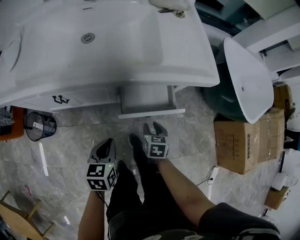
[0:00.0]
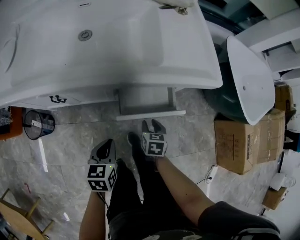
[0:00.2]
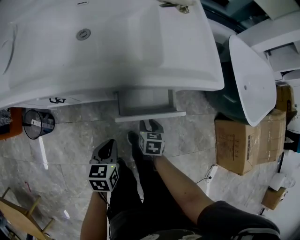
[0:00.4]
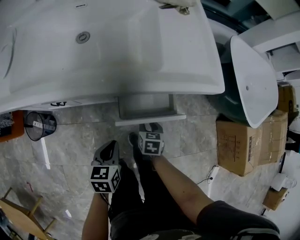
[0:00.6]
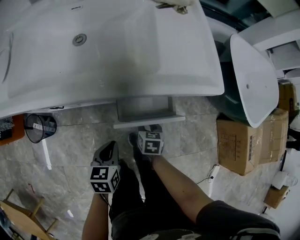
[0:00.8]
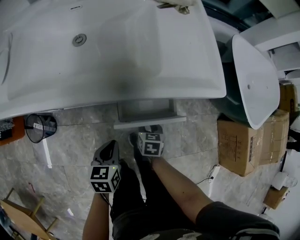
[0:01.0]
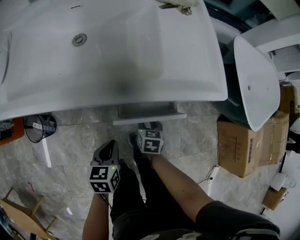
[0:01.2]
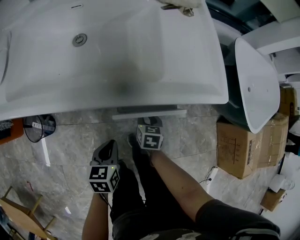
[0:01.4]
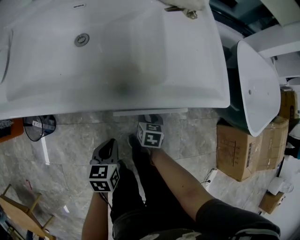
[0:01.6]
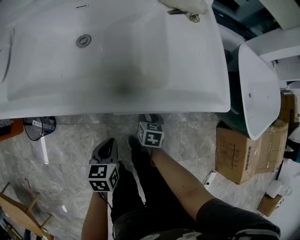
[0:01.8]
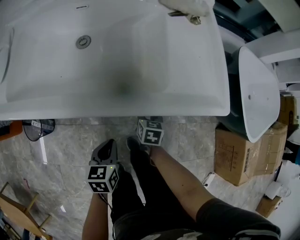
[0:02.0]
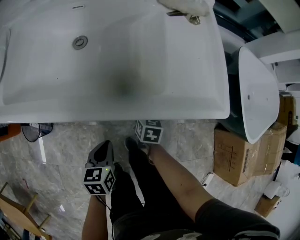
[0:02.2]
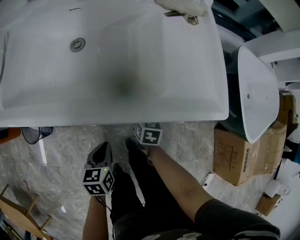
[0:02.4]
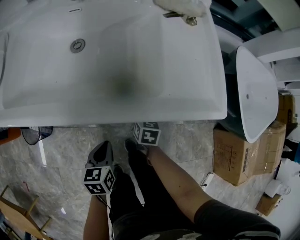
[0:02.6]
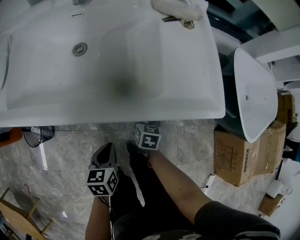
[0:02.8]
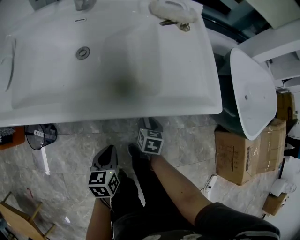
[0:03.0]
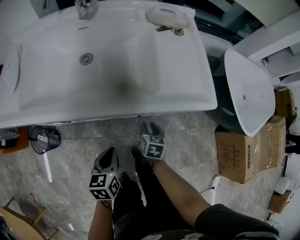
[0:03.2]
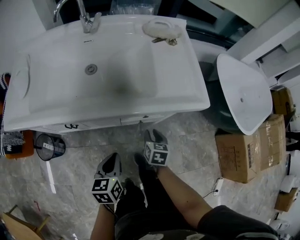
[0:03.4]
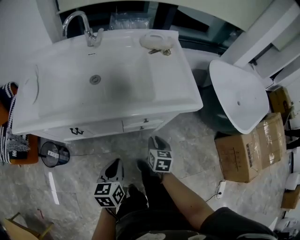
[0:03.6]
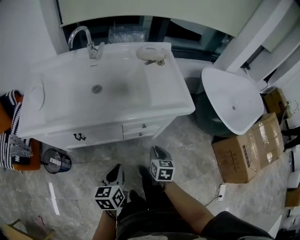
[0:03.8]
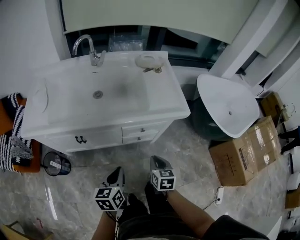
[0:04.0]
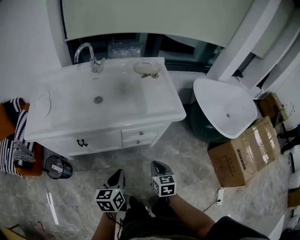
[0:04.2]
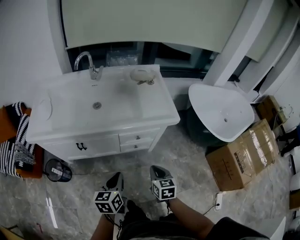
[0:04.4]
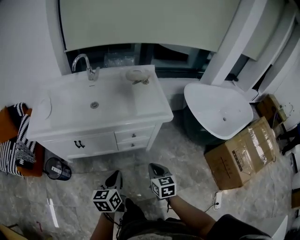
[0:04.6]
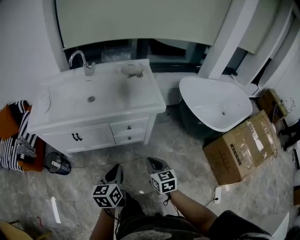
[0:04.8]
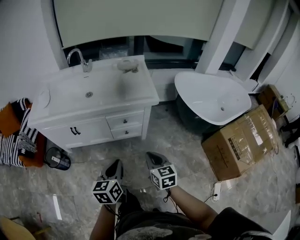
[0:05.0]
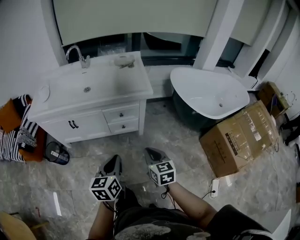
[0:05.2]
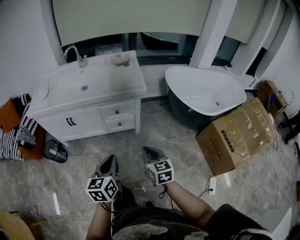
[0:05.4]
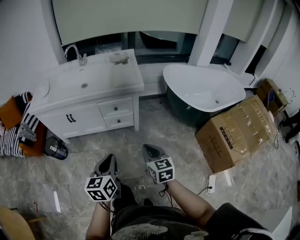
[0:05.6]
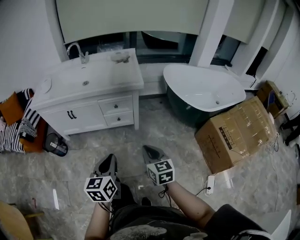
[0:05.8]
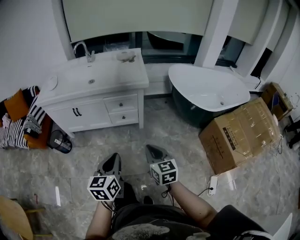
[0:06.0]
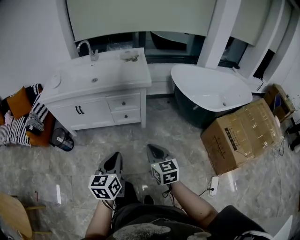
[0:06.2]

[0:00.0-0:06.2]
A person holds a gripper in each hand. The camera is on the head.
0:00.0 to 0:01.6: The left gripper is displaced forward by roughly 5 cm, while the right gripper heads forward, covering roughly 10 cm.
0:01.6 to 0:03.2: The two grippers go some 5 cm upward.
0:03.2 to 0:04.6: The two grippers go about 30 cm upward and backward. The right gripper closes its fingers.
0:04.6 to 0:06.2: Both grippers travel together backward and to the right, some 30 cm.

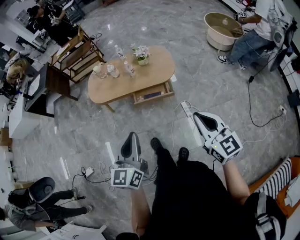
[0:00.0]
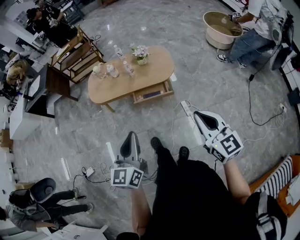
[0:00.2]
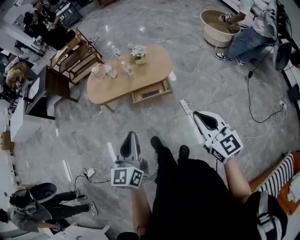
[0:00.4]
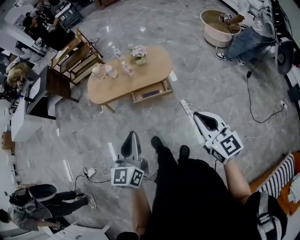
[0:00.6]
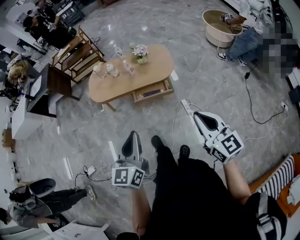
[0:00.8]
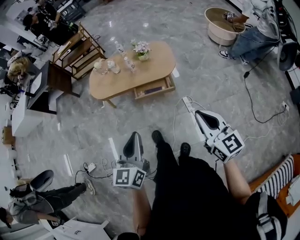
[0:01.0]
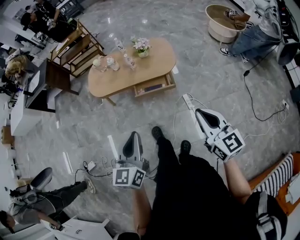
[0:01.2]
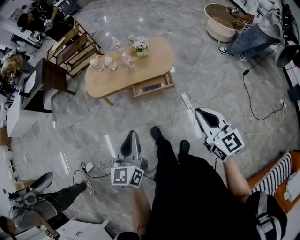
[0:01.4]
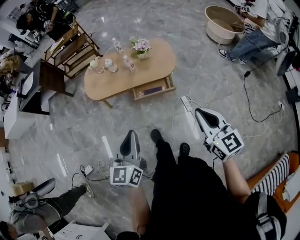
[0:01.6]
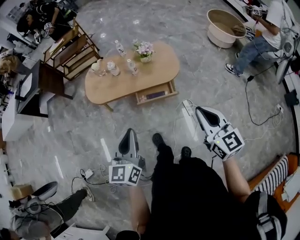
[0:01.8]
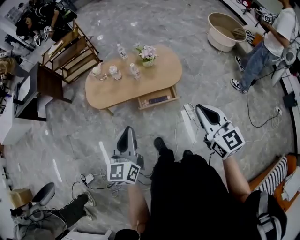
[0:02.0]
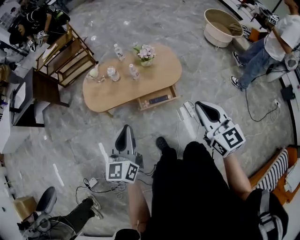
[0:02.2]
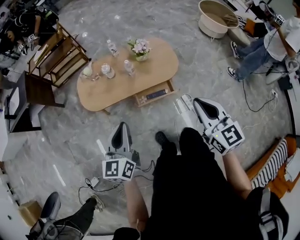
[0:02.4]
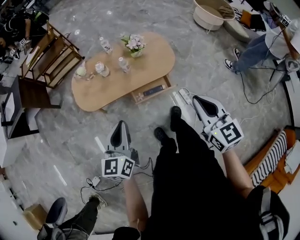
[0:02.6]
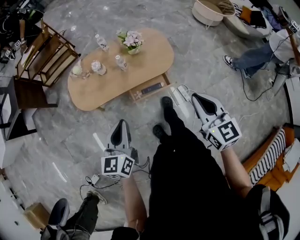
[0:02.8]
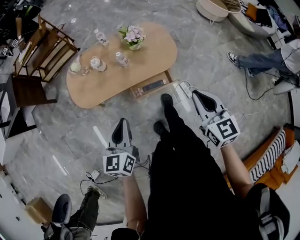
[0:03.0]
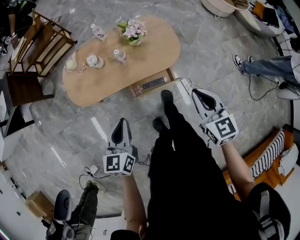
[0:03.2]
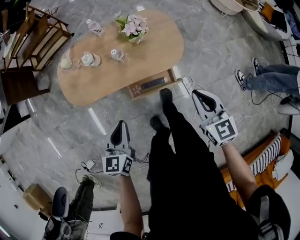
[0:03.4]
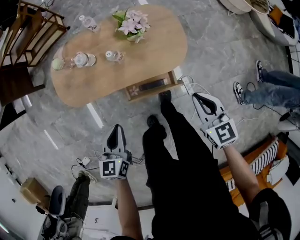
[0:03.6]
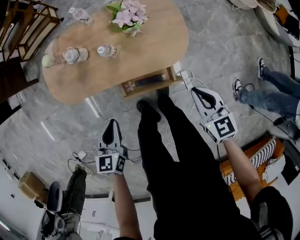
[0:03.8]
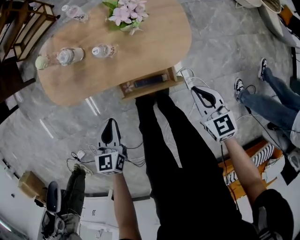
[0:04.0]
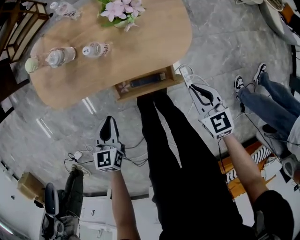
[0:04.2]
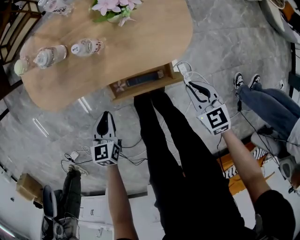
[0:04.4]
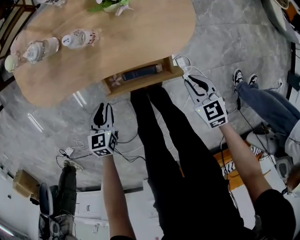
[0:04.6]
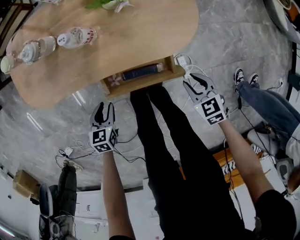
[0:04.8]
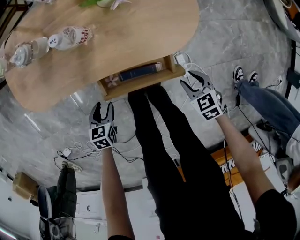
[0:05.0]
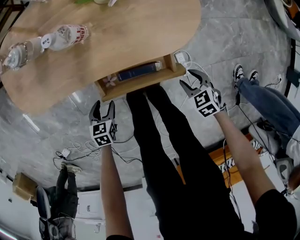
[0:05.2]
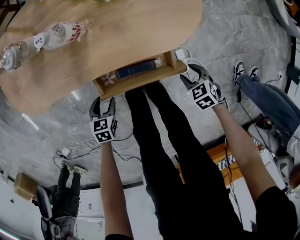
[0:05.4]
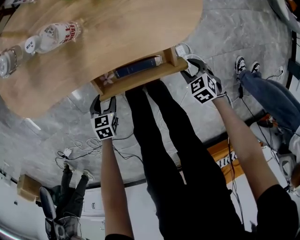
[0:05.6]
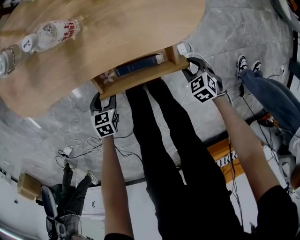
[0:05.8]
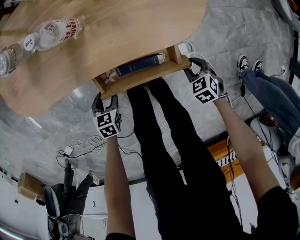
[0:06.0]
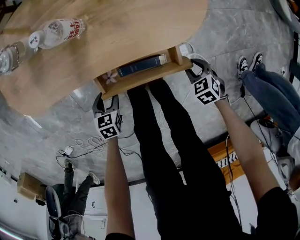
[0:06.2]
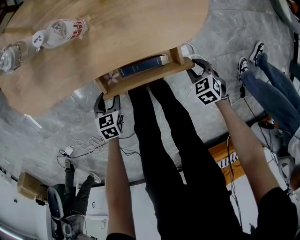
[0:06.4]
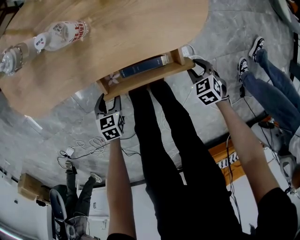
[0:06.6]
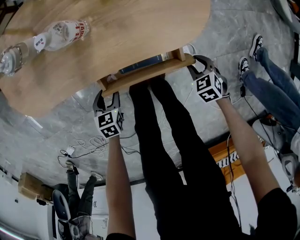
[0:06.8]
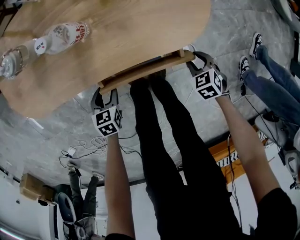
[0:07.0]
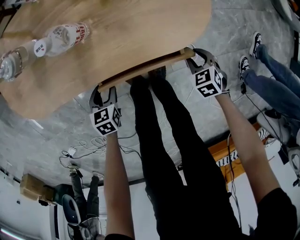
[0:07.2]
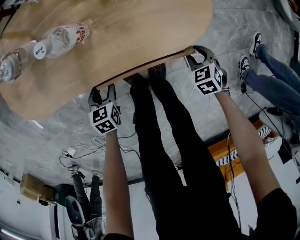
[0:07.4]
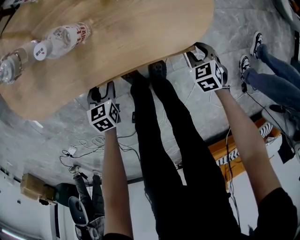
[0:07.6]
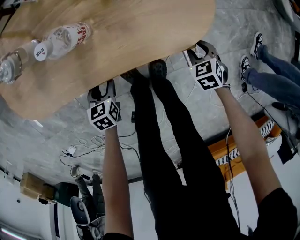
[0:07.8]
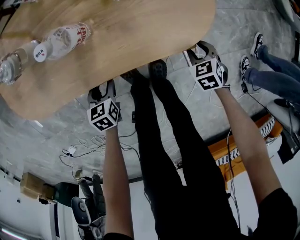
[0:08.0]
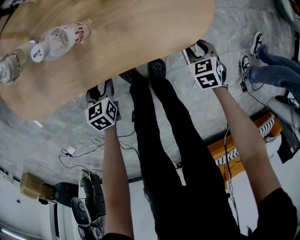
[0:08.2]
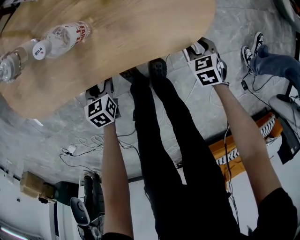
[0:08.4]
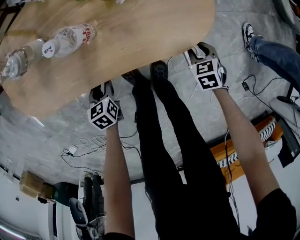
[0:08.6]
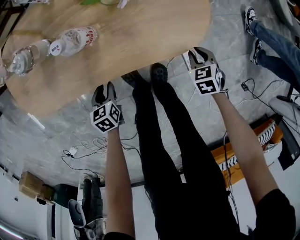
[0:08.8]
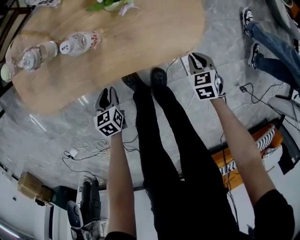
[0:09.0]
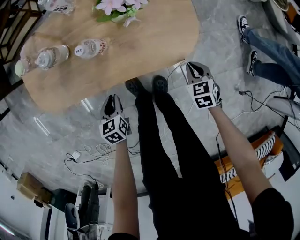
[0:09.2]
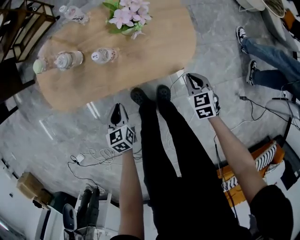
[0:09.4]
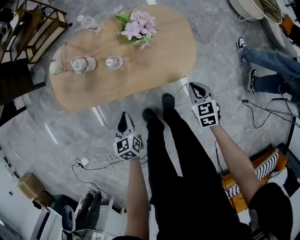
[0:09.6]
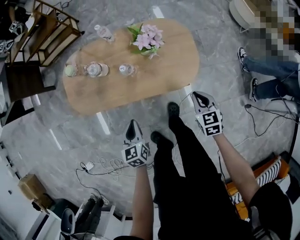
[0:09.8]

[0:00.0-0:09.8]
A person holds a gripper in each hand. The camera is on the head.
0:00.0 to 0:01.4: The grippers stay close to where they were, moving slightly.
0:01.4 to 0:02.8: Both grippers travel together forward and to the left, approximately 25 cm.
0:02.8 to 0:04.2: Both grippers move downward and forward, roughly 40 cm. The right gripper changes its angle by approximately 30 degrees. Meanwhile the left gripper turns by approximately 30 degrees.
0:04.2 to 0:05.6: Both grippers move downward, some 30 cm. The right gripper angles its fingers downward, by some 30 degrees, and opens. The left gripper swivels some 30 degrees, and opens.
0:05.6 to 0:07.0: The left gripper changes place by about 5 cm. Meanwhile the right gripper ends up about 5 cm from where it was.
0:07.0 to 0:08.4: Both grippers move forward, some 5 cm.
0:08.4 to 0:09.8: Both grippers move upward, some 35 cm. The left gripper turns by some 20 degrees, and closes, while the right gripper turns by about 30 degrees, and closes.

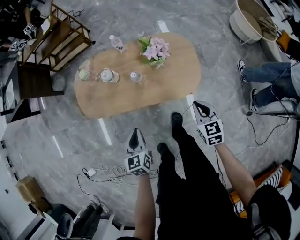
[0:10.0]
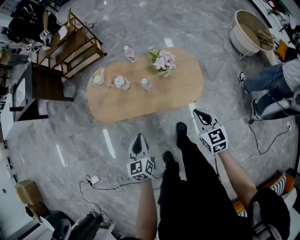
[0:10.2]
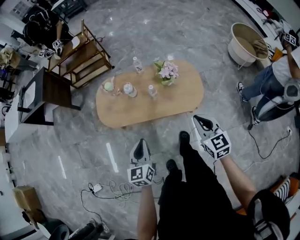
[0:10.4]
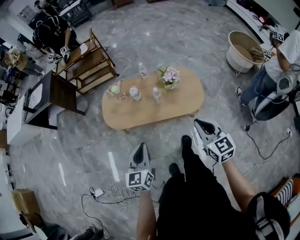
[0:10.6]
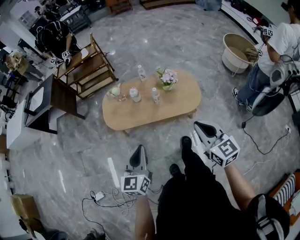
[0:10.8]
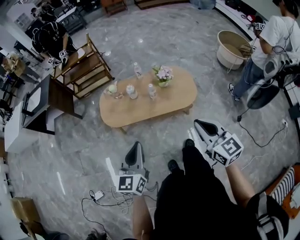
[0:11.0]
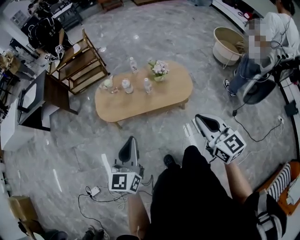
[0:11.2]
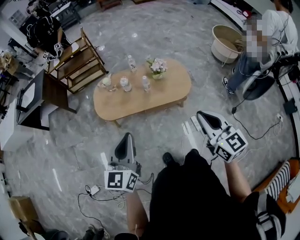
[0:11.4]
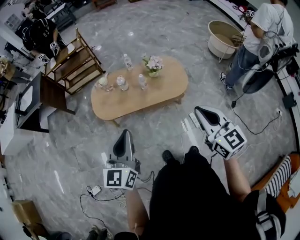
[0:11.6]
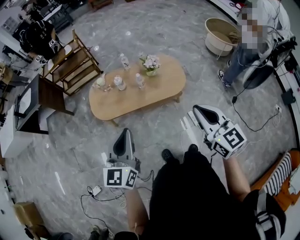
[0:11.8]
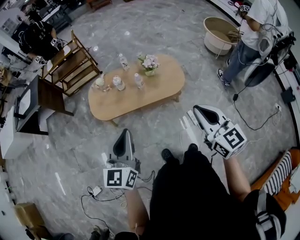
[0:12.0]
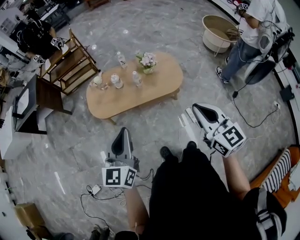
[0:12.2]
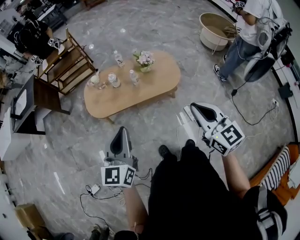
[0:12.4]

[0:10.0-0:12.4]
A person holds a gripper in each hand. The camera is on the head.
0:10.0 to 0:11.2: The left gripper heads upward and backward, covering some 40 cm, and rotates about 30 degrees; the right gripper heads upward, backward and to the left, covering about 50 cm, and changes its angle by approximately 30 degrees.
0:11.2 to 0:12.4: The grippers stay close to where they were, moving slightly.

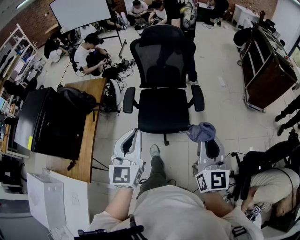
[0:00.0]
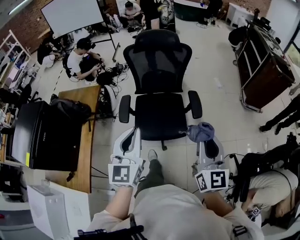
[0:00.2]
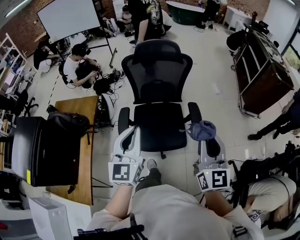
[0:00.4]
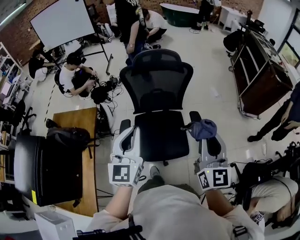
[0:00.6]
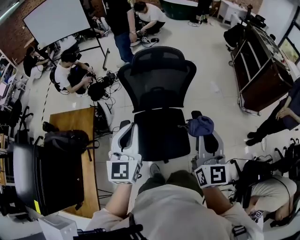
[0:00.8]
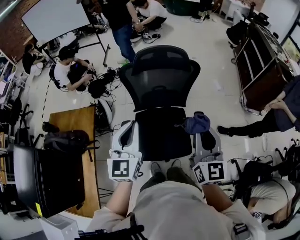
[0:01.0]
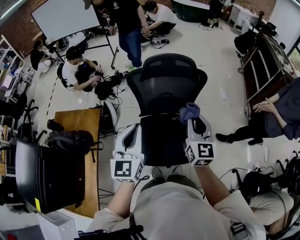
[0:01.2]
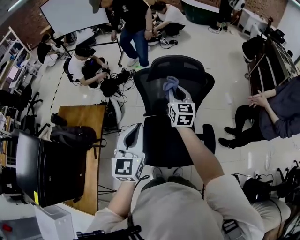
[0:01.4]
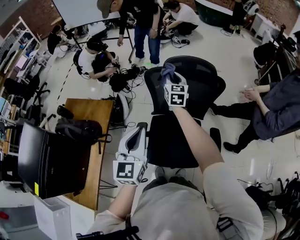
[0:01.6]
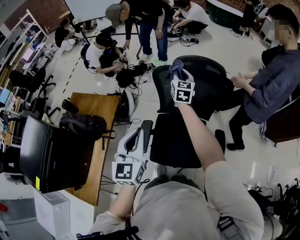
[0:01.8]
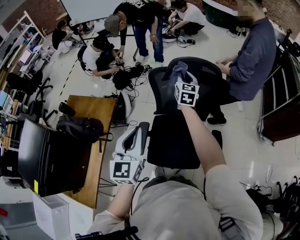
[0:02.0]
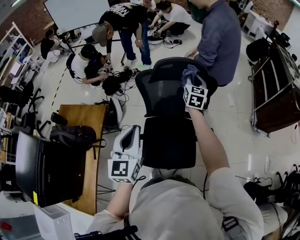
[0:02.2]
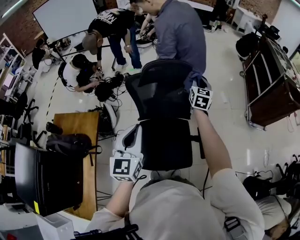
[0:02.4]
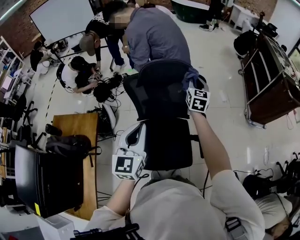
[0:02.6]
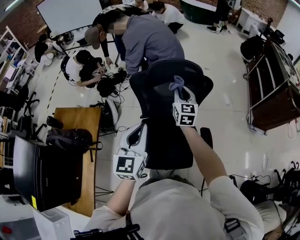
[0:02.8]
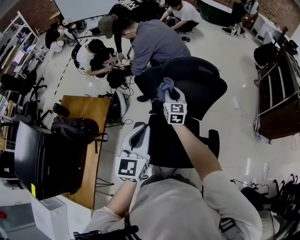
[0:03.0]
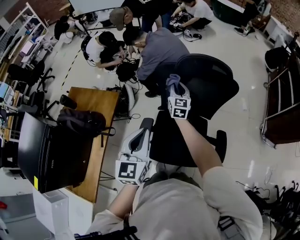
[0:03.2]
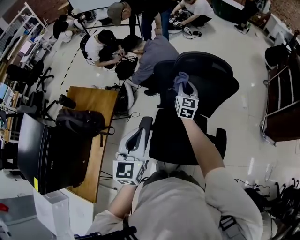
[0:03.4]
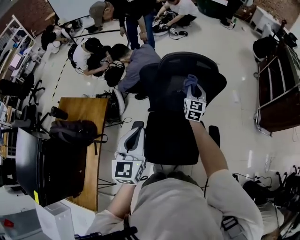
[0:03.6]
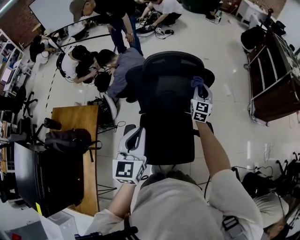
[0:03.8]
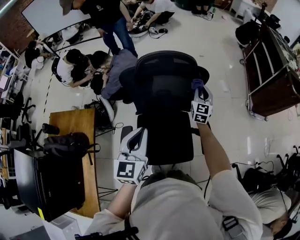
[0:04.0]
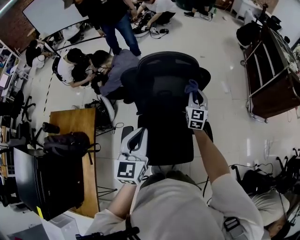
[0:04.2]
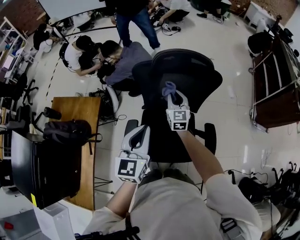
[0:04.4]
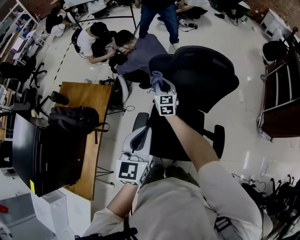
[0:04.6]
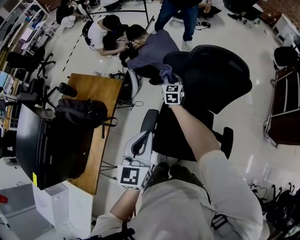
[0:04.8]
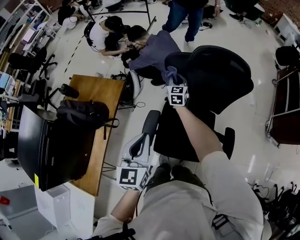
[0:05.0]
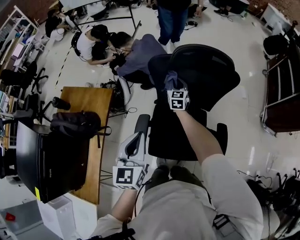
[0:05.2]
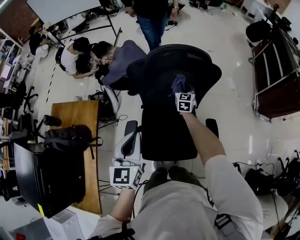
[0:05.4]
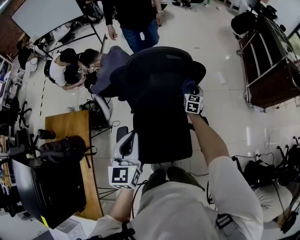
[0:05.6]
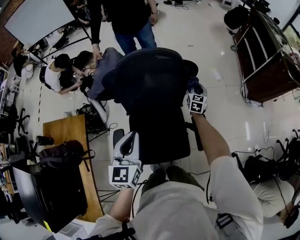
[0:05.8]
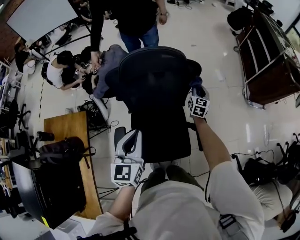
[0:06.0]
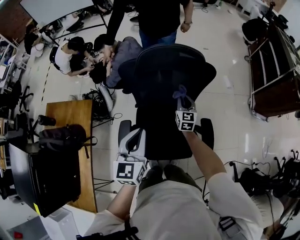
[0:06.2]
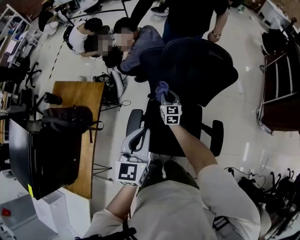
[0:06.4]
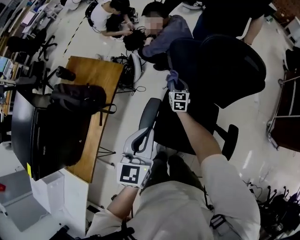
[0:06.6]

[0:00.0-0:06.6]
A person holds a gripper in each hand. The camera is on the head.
0:00.0 to 0:01.6: The left gripper is displaced forward by roughly 40 cm, while the right gripper is displaced forward by about 70 cm, and swivels approximately 30 degrees.
0:01.6 to 0:03.2: The left gripper changes place by approximately 5 cm, while the right gripper heads downward, covering roughly 10 cm, and reaches about 20 cm to the right, then returns.
0:03.2 to 0:05.0: The left gripper travels downward by some 5 cm, and moves about 10 cm to the right and comes back. The right gripper heads downward and forward, covering some 15 cm, and travels to the right and back again, about 30 cm each way.
0:05.0 to 0:06.6: The right gripper heads downward, covering roughly 15 cm.
